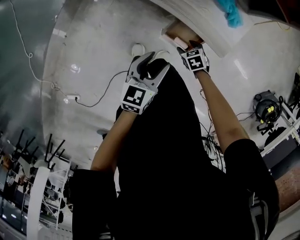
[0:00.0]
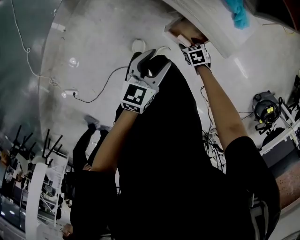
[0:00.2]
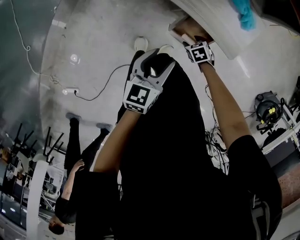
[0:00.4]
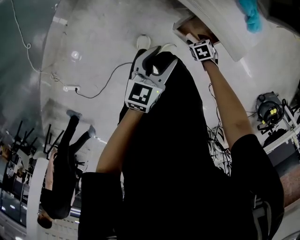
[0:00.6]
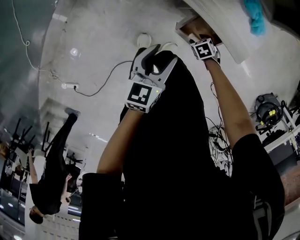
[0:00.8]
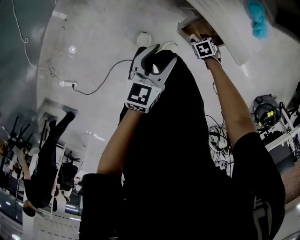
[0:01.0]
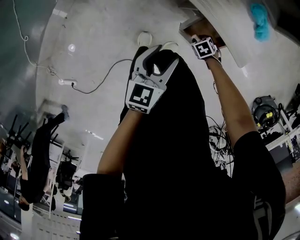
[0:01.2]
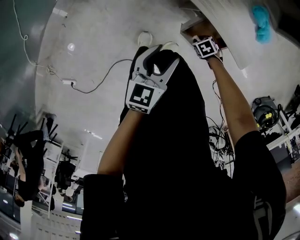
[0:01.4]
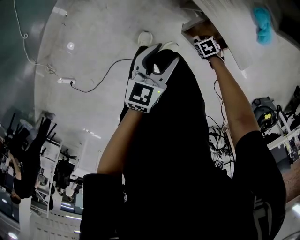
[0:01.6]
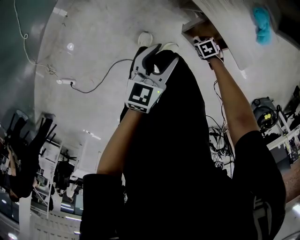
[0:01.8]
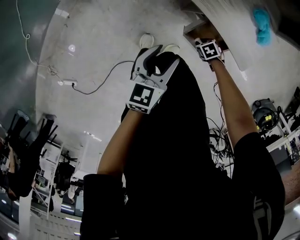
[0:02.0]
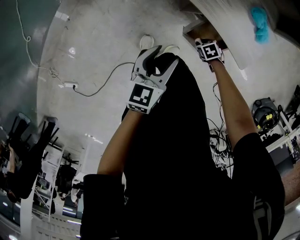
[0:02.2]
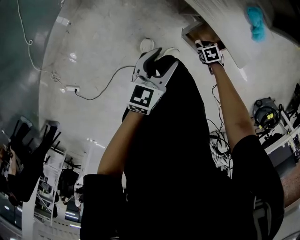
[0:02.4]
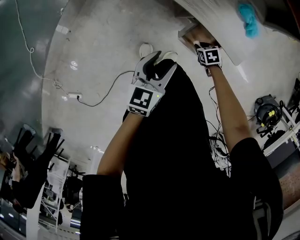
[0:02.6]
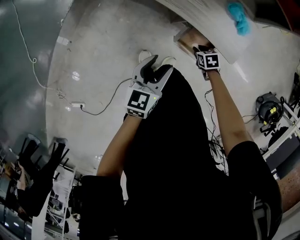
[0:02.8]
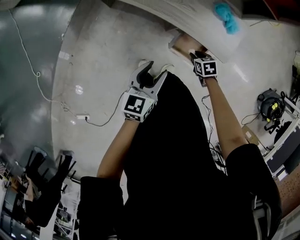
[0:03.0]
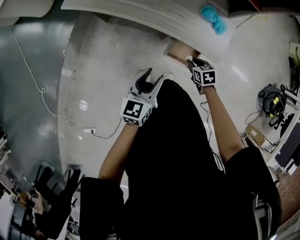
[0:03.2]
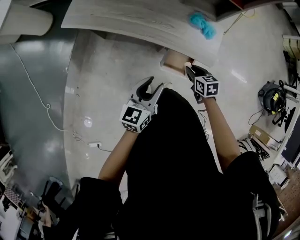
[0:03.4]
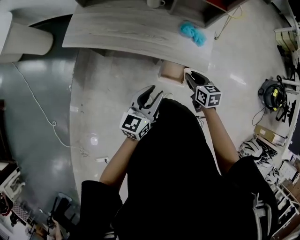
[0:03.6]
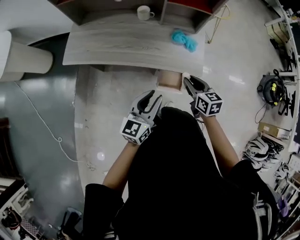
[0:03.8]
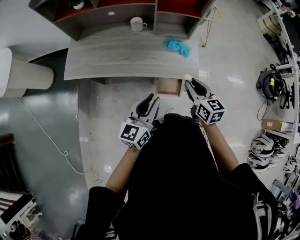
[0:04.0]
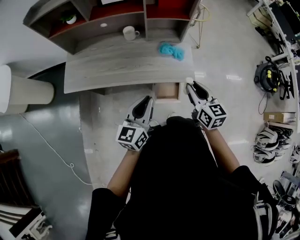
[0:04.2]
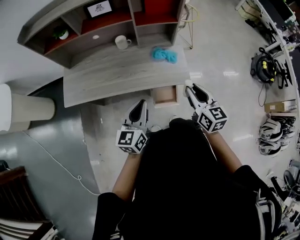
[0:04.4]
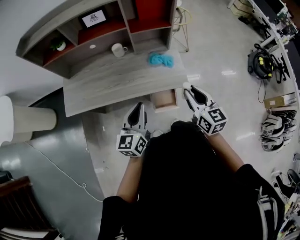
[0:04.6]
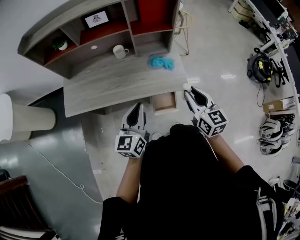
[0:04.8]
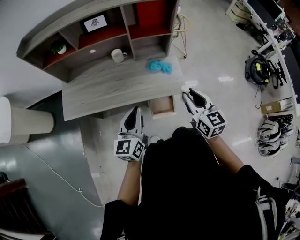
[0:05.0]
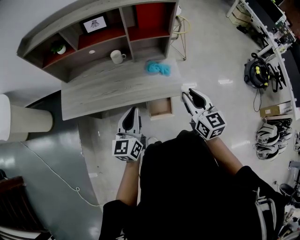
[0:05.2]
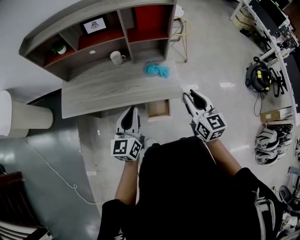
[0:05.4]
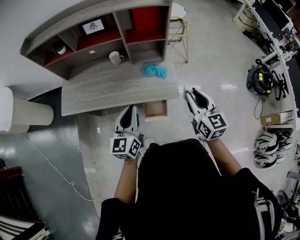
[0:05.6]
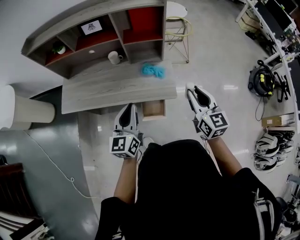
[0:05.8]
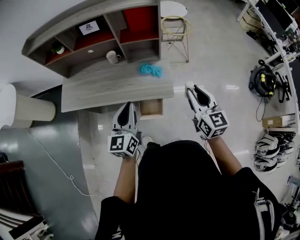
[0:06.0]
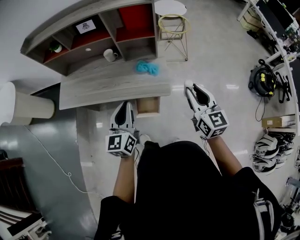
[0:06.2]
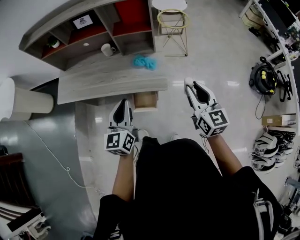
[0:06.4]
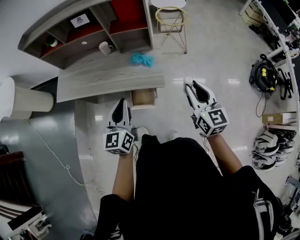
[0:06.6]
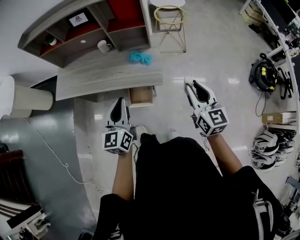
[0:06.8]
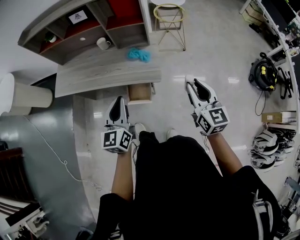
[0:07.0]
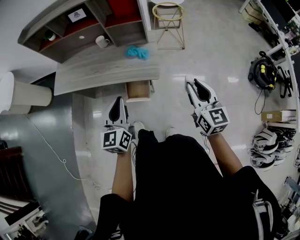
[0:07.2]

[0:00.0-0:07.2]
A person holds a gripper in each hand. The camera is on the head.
0:00.0 to 0:01.4: The right gripper shifts about 10 cm downward, turns by some 20 degrees, and closes its fingers; the left gripper ends up roughly 10 cm from where it was.
0:01.4 to 0:02.8: The left gripper heads upward, covering approximately 5 cm. Meanwhile the right gripper is displaced upward by about 10 cm, and swivels approximately 30 degrees.
0:02.8 to 0:04.4: The left gripper is displaced upward by roughly 25 cm, changes its angle by approximately 30 degrees, and closes its fingers, while the right gripper moves upward, some 50 cm, and angles its fingers upward, by some 50 degrees.
0:04.4 to 0:05.8: The grippers both shift to the right and upward by some 15 cm.
0:05.8 to 0:07.2: The right gripper is displaced to the right and backward by roughly 15 cm. The left gripper is displaced backward and to the right by approximately 15 cm.

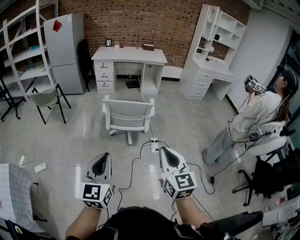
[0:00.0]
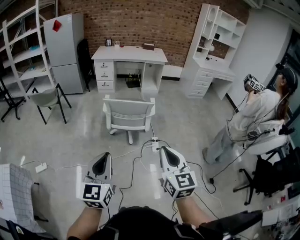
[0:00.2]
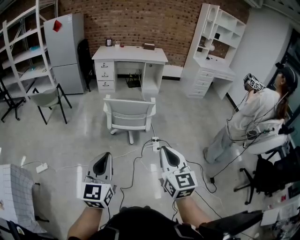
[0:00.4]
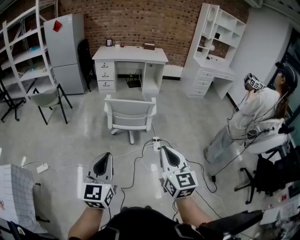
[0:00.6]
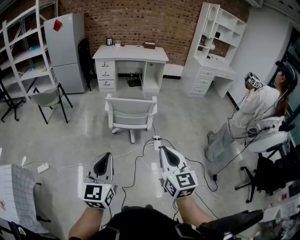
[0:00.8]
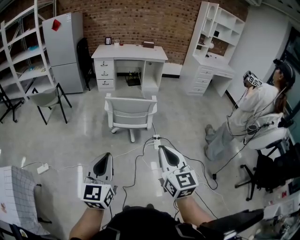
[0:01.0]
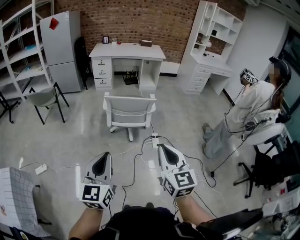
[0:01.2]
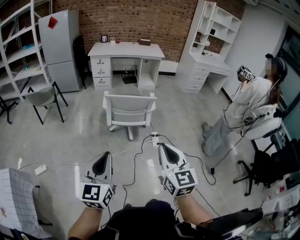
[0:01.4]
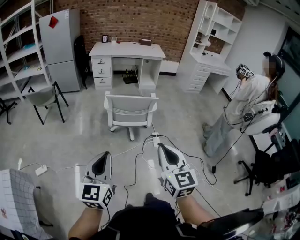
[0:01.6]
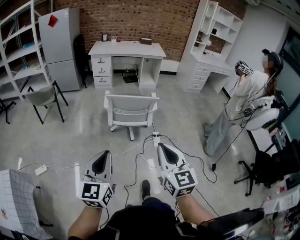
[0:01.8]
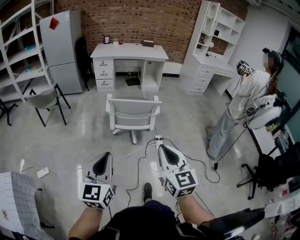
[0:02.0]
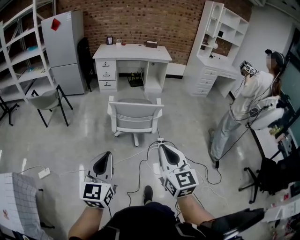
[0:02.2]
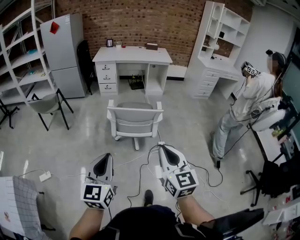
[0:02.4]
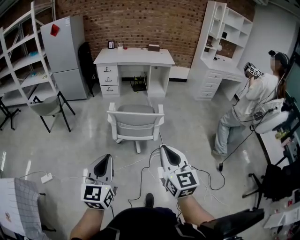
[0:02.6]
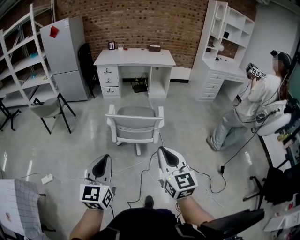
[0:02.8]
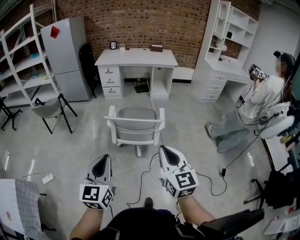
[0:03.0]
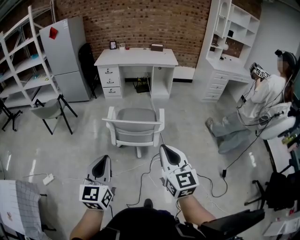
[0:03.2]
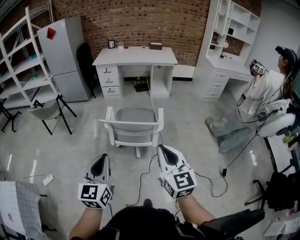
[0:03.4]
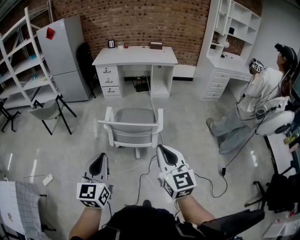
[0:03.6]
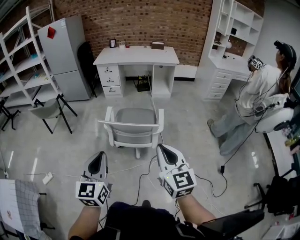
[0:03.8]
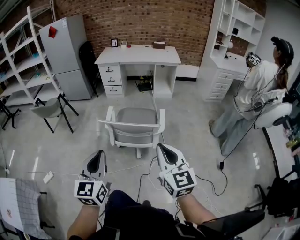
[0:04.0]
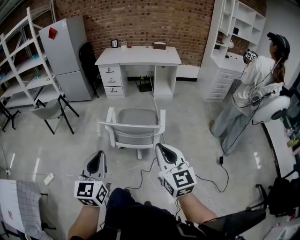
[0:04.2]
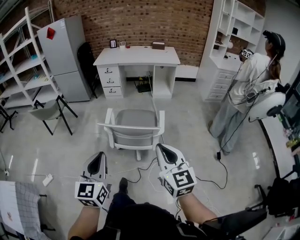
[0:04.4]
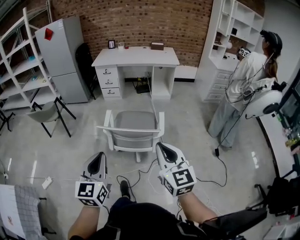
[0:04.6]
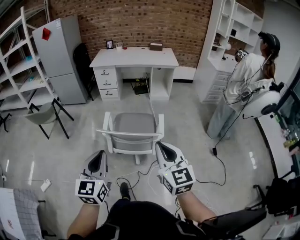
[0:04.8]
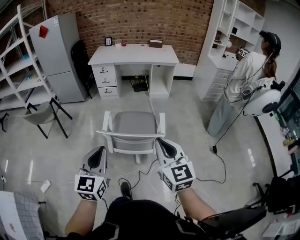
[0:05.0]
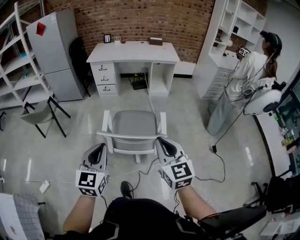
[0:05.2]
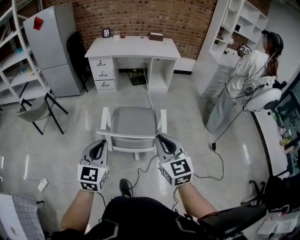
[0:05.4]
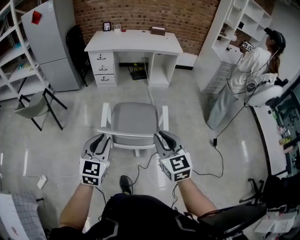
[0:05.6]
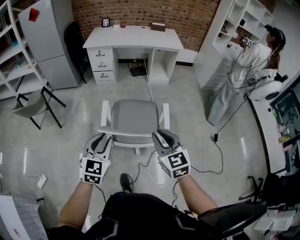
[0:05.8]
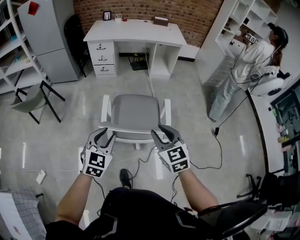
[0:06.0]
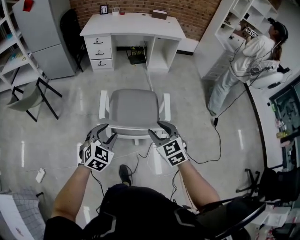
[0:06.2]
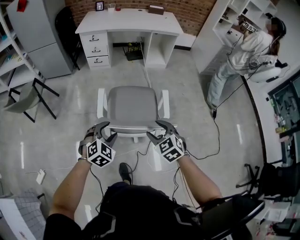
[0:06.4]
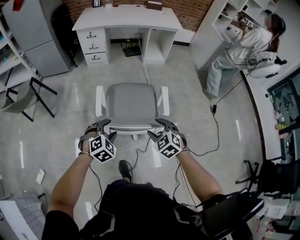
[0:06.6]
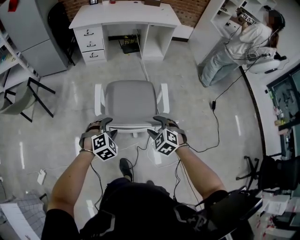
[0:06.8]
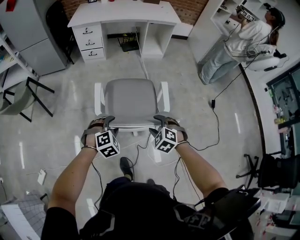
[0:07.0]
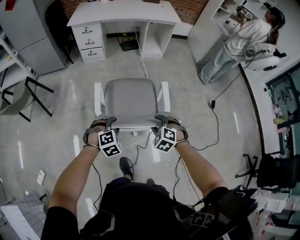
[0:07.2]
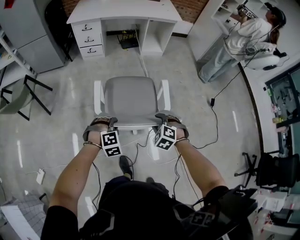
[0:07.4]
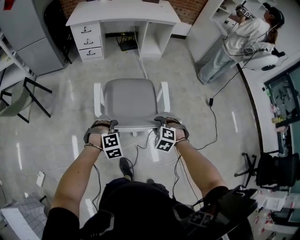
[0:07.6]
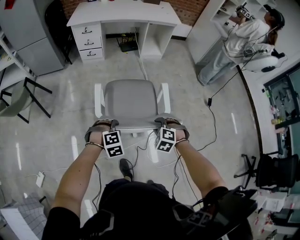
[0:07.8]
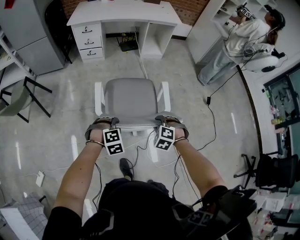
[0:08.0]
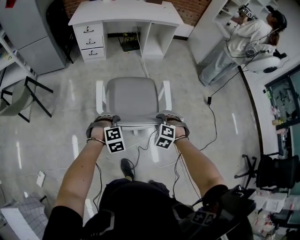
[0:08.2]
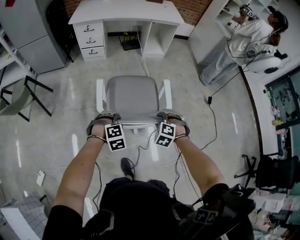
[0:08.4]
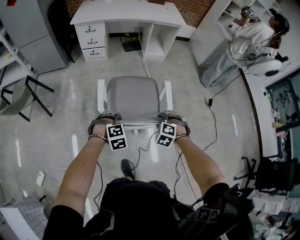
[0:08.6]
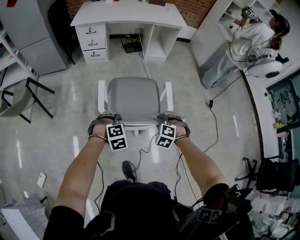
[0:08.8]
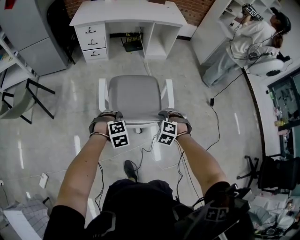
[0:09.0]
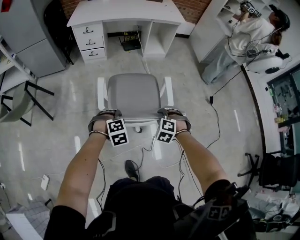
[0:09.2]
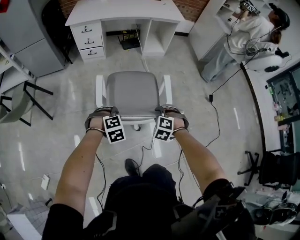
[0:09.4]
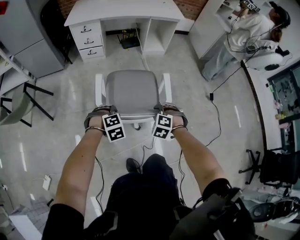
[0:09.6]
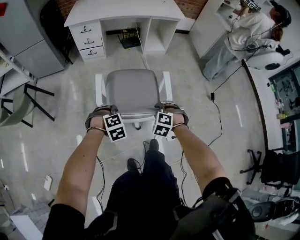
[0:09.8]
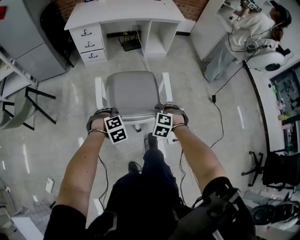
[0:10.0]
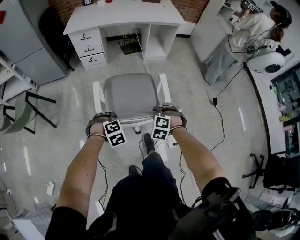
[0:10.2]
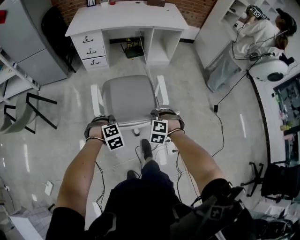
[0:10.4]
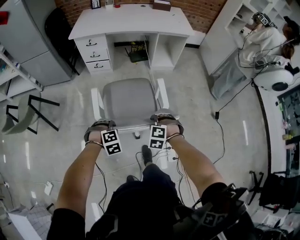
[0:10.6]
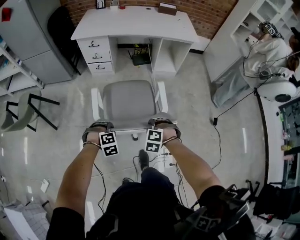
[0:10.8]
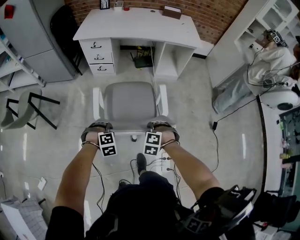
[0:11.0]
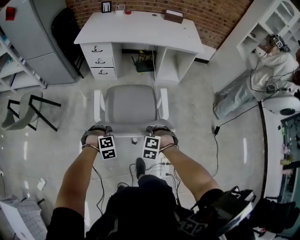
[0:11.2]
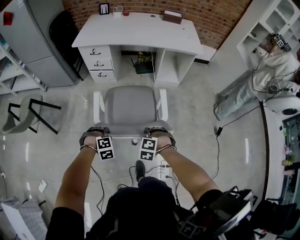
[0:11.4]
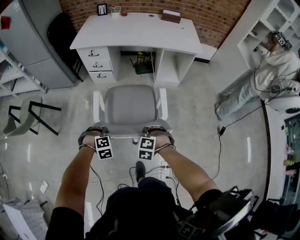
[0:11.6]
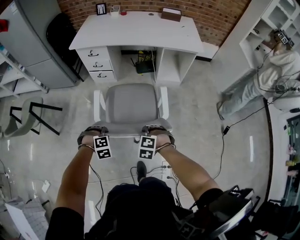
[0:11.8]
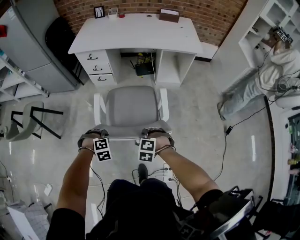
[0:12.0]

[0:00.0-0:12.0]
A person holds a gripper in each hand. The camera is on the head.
0:00.0 to 0:01.6: Both grippers move to the left, about 10 cm.
0:01.6 to 0:03.0: The two grippers go some 20 cm forward and to the right.
0:03.0 to 0:04.4: The left gripper heads forward, covering some 10 cm. Meanwhile the right gripper heads forward and to the right, covering approximately 10 cm.
0:04.4 to 0:06.0: The right gripper heads forward, downward and to the left, covering about 25 cm, swivels roughly 20 degrees, and opens up. The left gripper moves forward and downward, approximately 30 cm, rotates roughly 30 degrees, and opens up.
0:06.0 to 0:07.6: Both grippers travel together downward, roughly 20 cm. The left gripper points its fingers roughly 30 degrees further downward, and opens, then closes again. The right gripper points its fingers about 40 degrees further downward, and opens, then closes again.
0:07.6 to 0:09.0: The two grippers go approximately 5 cm forward.
0:09.0 to 0:10.4: The grippers both shift forward by roughly 10 cm.
0:10.4 to 0:12.0: Both grippers move forward, approximately 15 cm.

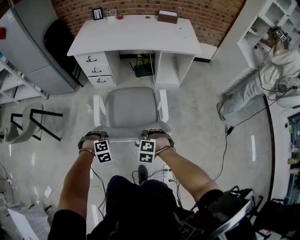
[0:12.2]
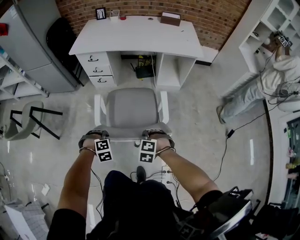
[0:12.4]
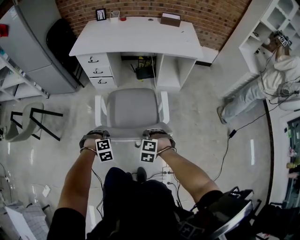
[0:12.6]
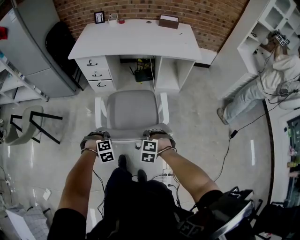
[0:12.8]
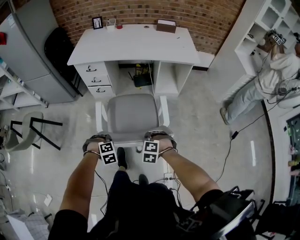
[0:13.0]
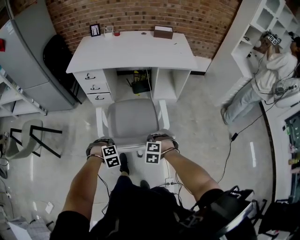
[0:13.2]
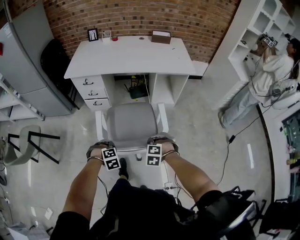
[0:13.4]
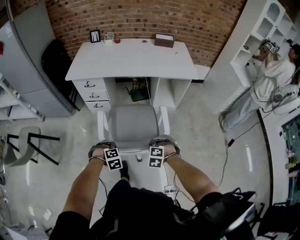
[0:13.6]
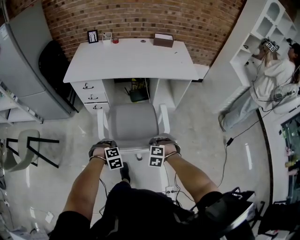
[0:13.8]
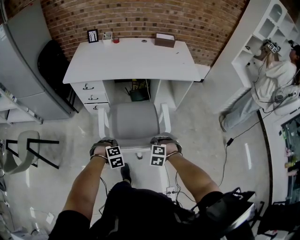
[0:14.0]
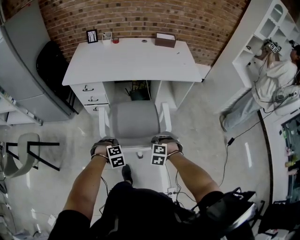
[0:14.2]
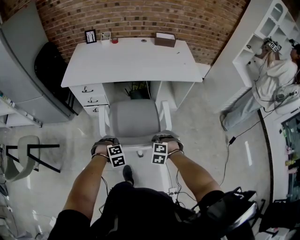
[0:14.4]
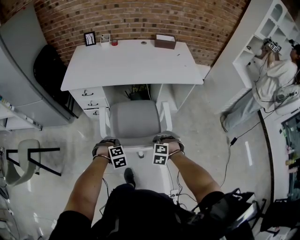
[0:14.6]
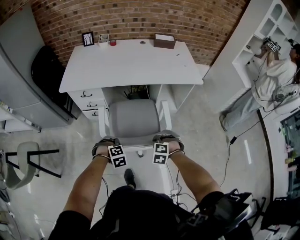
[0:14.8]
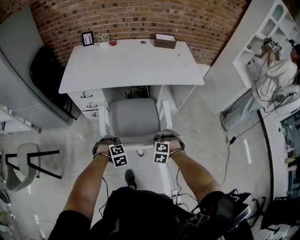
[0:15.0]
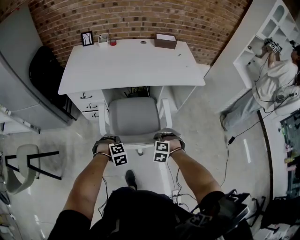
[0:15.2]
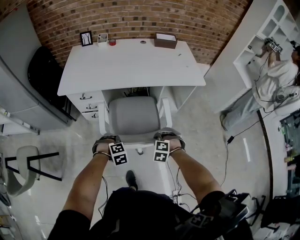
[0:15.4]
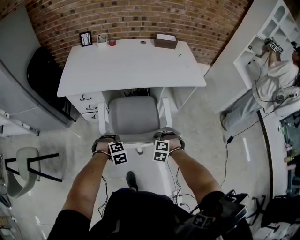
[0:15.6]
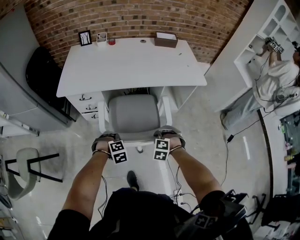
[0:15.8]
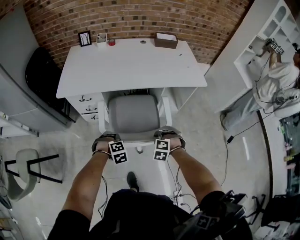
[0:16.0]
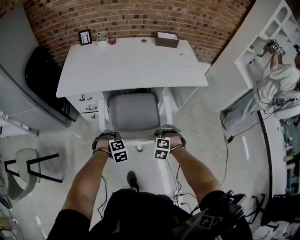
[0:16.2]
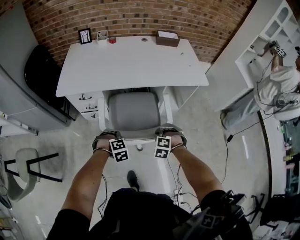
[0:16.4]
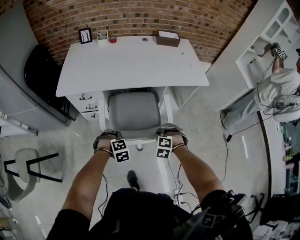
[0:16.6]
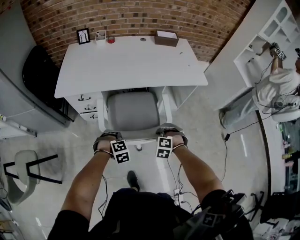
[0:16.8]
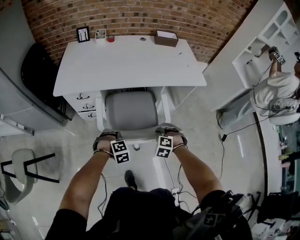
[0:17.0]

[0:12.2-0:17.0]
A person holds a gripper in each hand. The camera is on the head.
0:12.2 to 0:13.8: Both grippers travel together forward, roughly 15 cm.
0:13.8 to 0:15.4: The two grippers go approximately 15 cm forward.
0:15.4 to 0:17.0: The grippers make only small movements.
